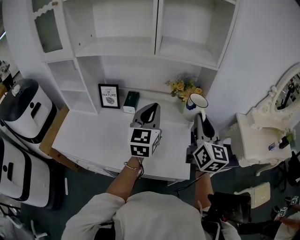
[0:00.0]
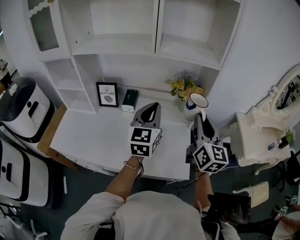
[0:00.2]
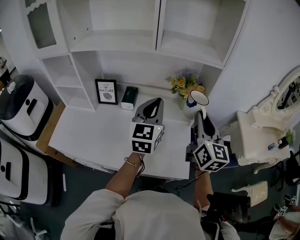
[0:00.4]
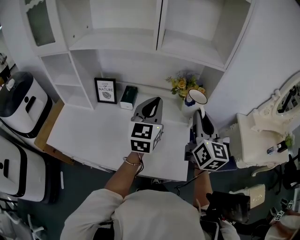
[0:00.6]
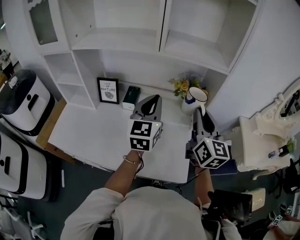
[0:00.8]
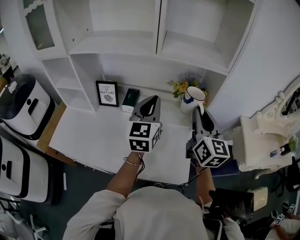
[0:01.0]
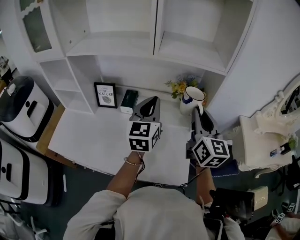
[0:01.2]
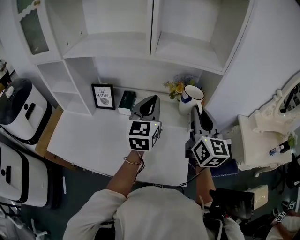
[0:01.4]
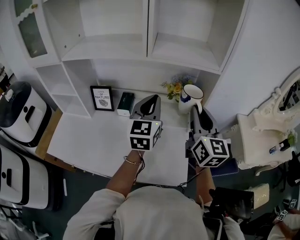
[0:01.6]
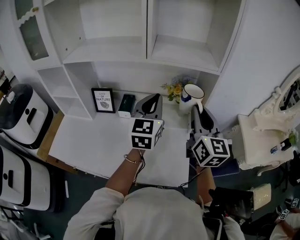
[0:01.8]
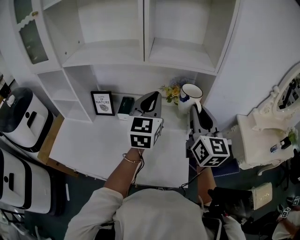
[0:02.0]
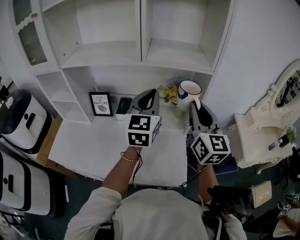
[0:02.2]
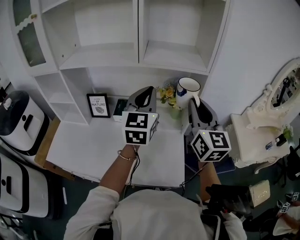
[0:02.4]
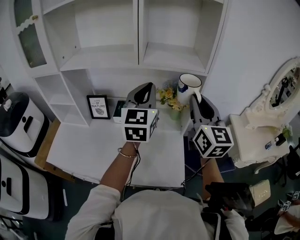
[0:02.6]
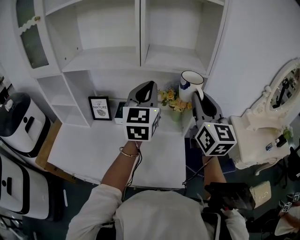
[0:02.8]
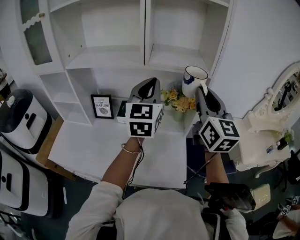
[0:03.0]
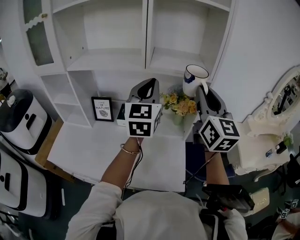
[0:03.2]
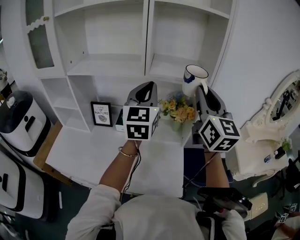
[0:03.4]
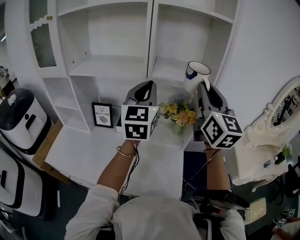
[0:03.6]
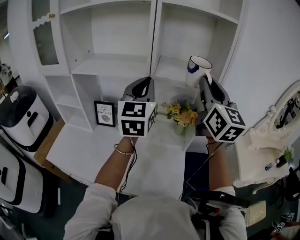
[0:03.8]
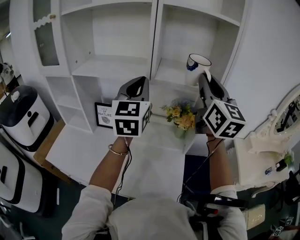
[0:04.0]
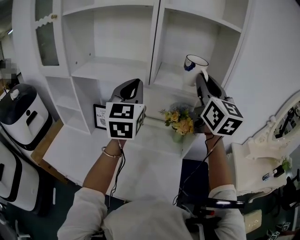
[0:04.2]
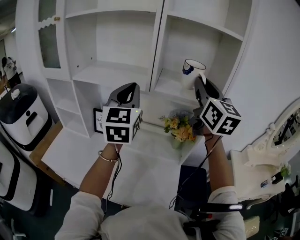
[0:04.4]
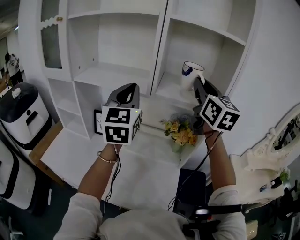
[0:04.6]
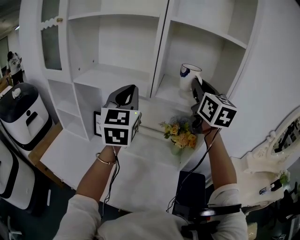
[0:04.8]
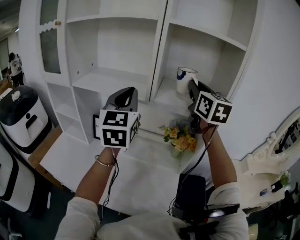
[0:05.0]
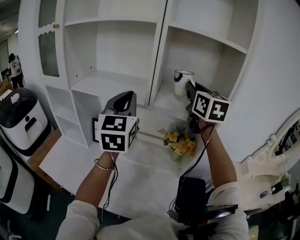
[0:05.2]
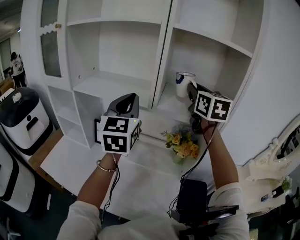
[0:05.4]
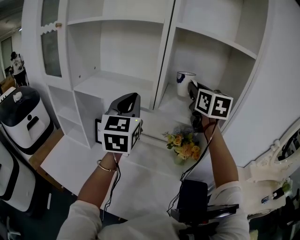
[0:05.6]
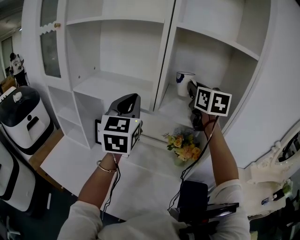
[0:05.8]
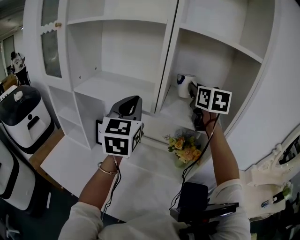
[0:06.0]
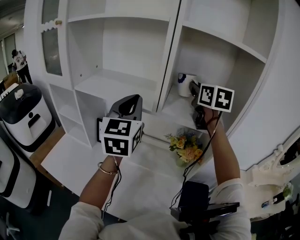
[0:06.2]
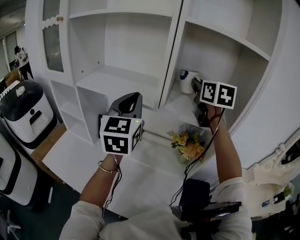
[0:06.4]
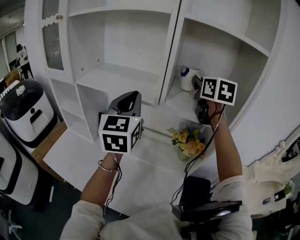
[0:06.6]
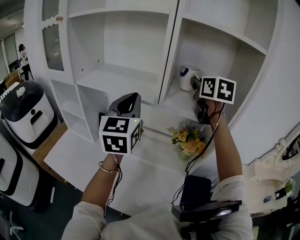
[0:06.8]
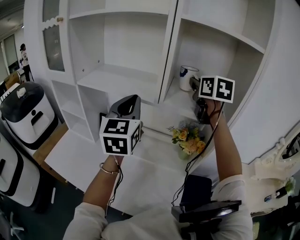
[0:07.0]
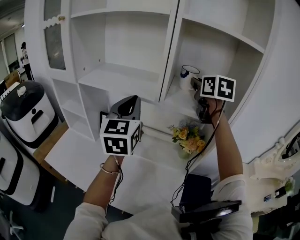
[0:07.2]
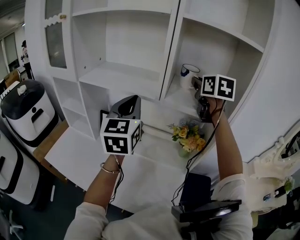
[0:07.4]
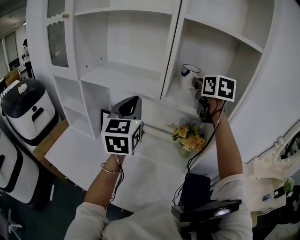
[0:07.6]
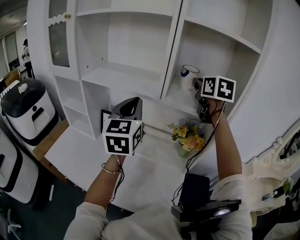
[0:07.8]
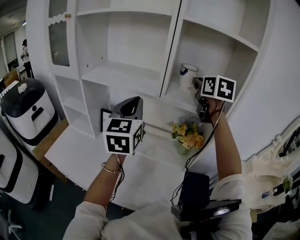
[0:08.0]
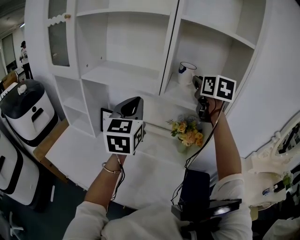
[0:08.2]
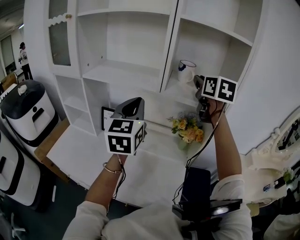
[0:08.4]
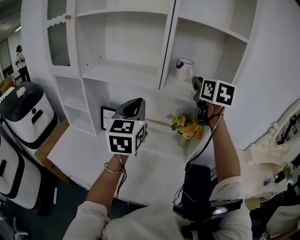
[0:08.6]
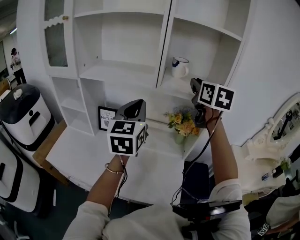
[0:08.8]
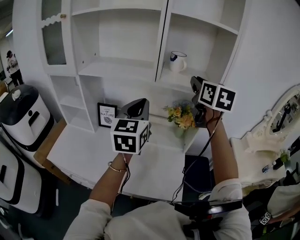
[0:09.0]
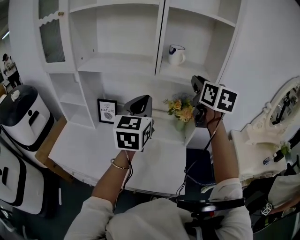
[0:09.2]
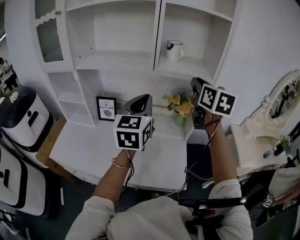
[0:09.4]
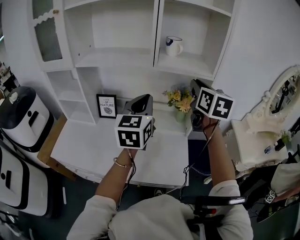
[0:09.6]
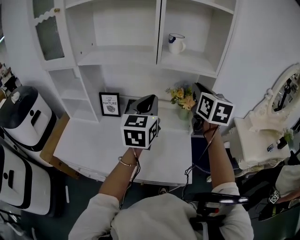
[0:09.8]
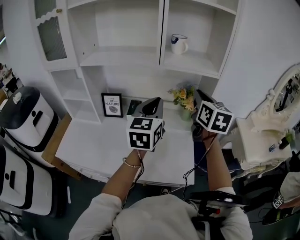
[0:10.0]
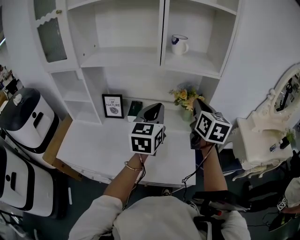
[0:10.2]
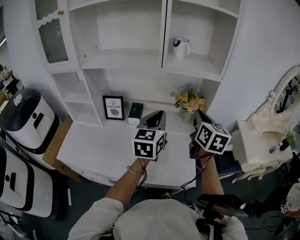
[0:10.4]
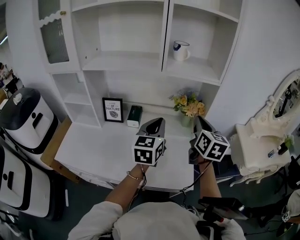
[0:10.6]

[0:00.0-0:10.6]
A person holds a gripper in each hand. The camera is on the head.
0:00.0 to 0:01.6: The two grippers go roughly 10 cm forward.
0:01.6 to 0:03.0: The two grippers go some 10 cm upward.
0:03.0 to 0:04.6: The left gripper heads to the left and upward, covering some 10 cm; the right gripper moves forward and upward, some 15 cm.
0:04.6 to 0:06.0: The right gripper is displaced forward by some 15 cm.
0:06.0 to 0:07.6: The left gripper ends up approximately 5 cm from where it was.
0:07.6 to 0:09.0: The right gripper goes approximately 15 cm backward, while the left gripper travels backward by about 10 cm.
0:09.0 to 0:10.6: The right gripper shifts about 20 cm downward and backward. Meanwhile the left gripper goes some 10 cm downward.

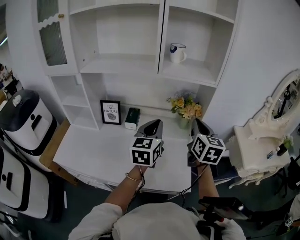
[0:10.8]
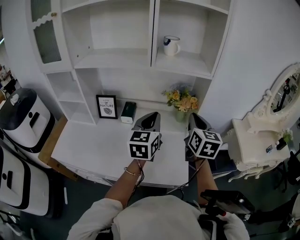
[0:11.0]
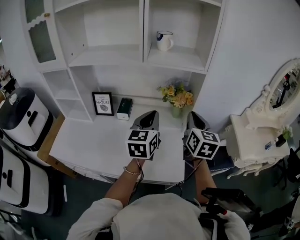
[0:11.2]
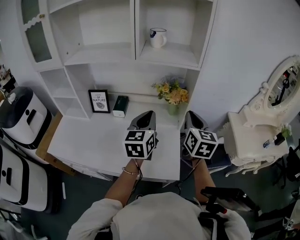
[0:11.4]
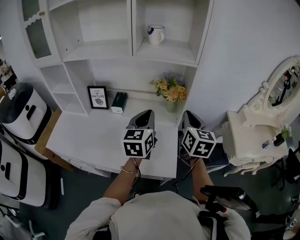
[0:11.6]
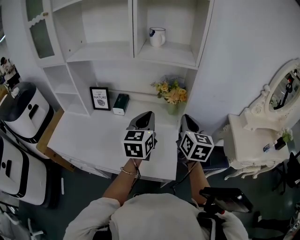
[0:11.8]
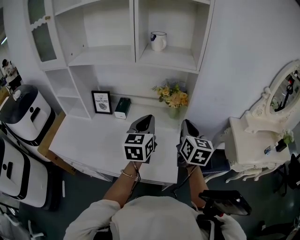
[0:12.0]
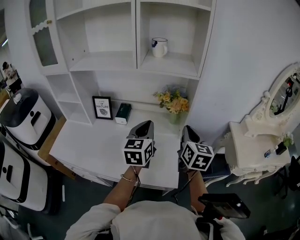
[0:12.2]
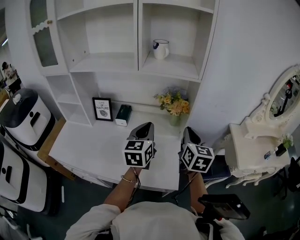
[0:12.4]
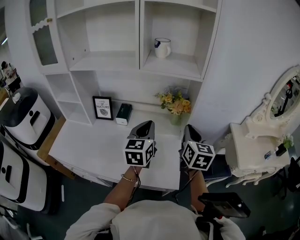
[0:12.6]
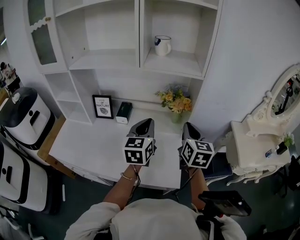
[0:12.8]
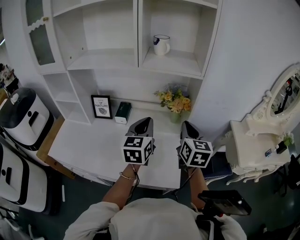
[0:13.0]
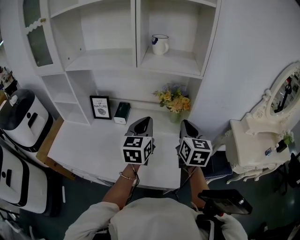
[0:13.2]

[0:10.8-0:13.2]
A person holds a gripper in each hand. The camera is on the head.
0:10.8 to 0:12.0: The two grippers go roughly 5 cm to the right.
0:12.0 to 0:13.2: The grippers move only a little.

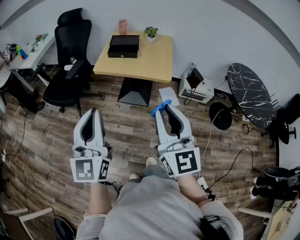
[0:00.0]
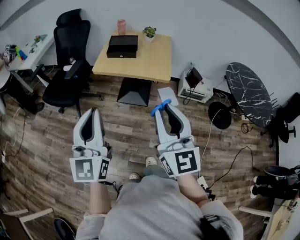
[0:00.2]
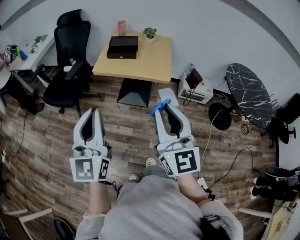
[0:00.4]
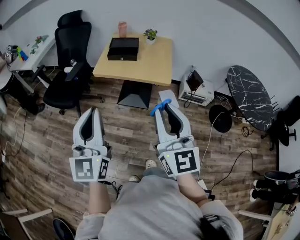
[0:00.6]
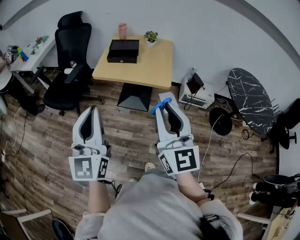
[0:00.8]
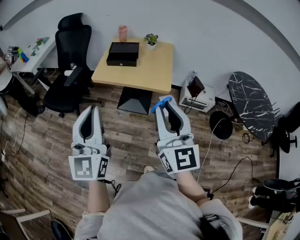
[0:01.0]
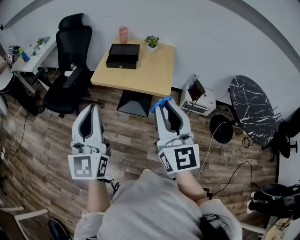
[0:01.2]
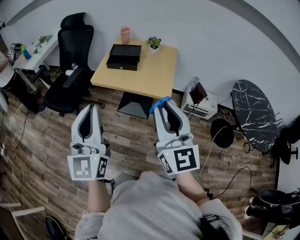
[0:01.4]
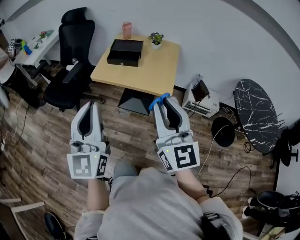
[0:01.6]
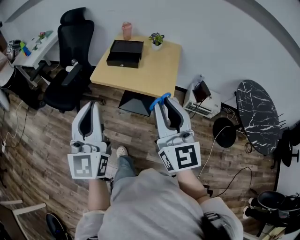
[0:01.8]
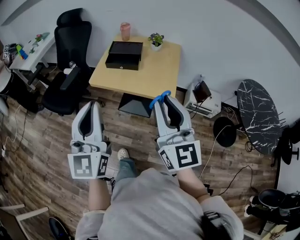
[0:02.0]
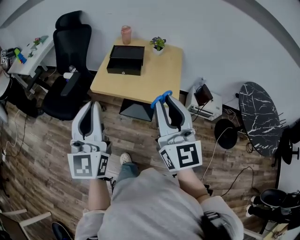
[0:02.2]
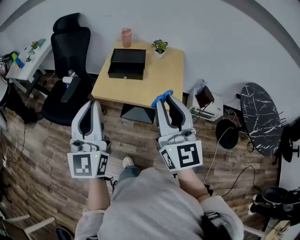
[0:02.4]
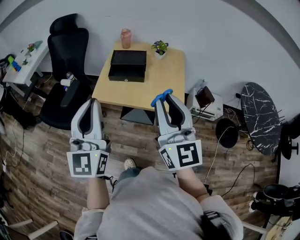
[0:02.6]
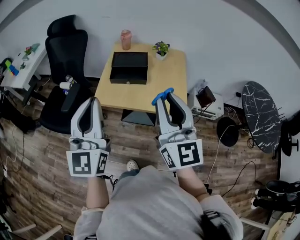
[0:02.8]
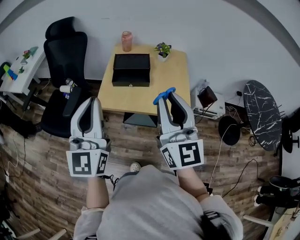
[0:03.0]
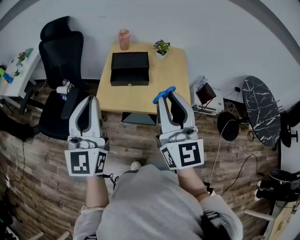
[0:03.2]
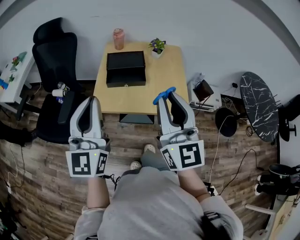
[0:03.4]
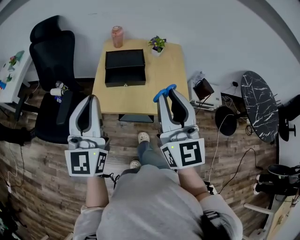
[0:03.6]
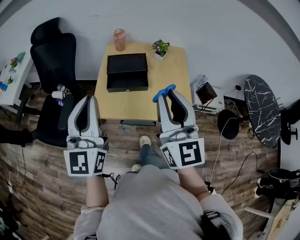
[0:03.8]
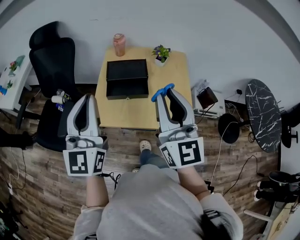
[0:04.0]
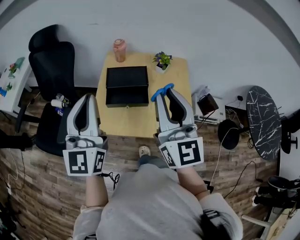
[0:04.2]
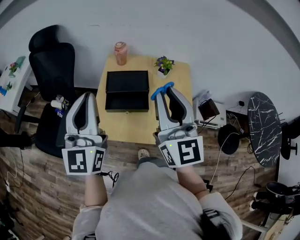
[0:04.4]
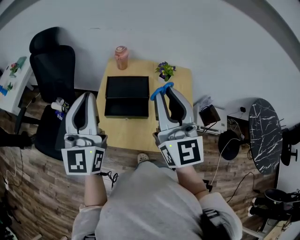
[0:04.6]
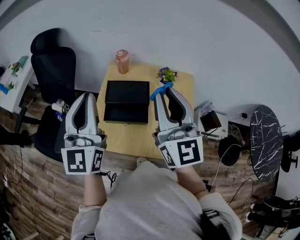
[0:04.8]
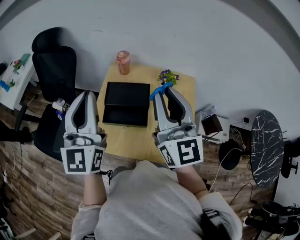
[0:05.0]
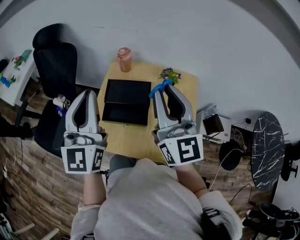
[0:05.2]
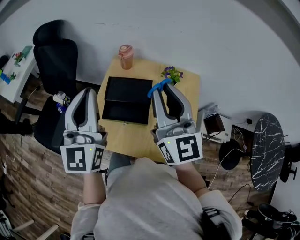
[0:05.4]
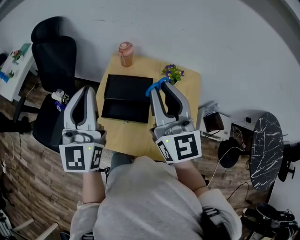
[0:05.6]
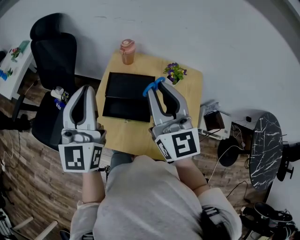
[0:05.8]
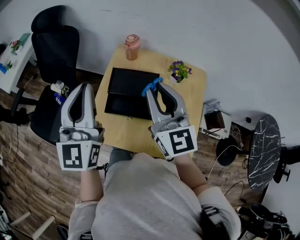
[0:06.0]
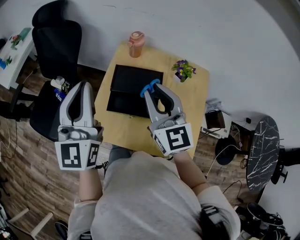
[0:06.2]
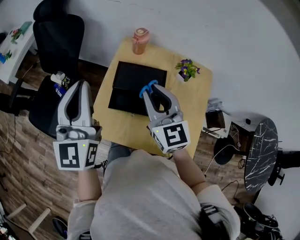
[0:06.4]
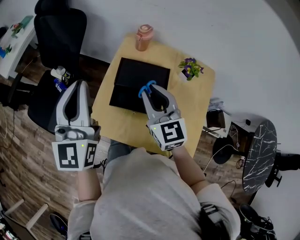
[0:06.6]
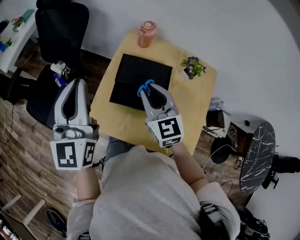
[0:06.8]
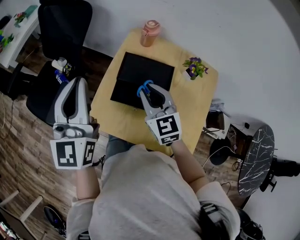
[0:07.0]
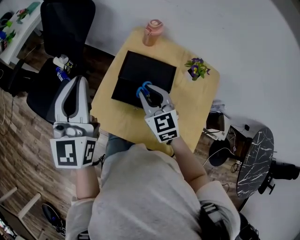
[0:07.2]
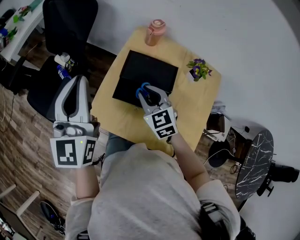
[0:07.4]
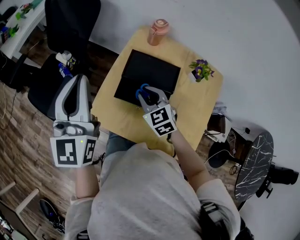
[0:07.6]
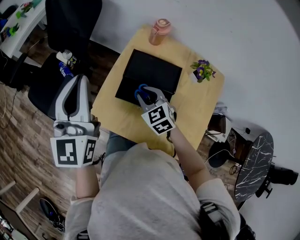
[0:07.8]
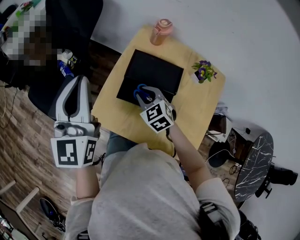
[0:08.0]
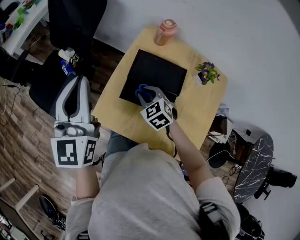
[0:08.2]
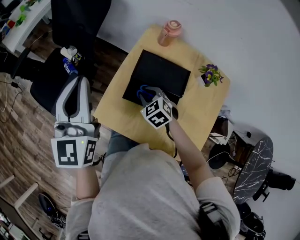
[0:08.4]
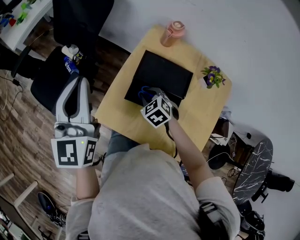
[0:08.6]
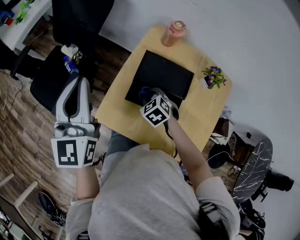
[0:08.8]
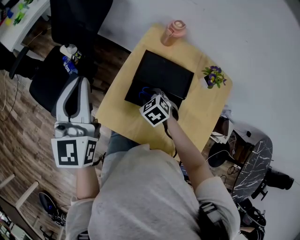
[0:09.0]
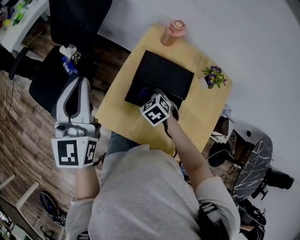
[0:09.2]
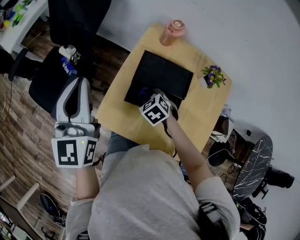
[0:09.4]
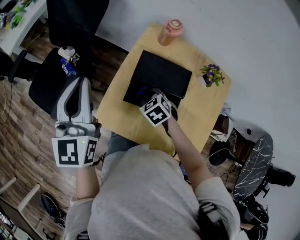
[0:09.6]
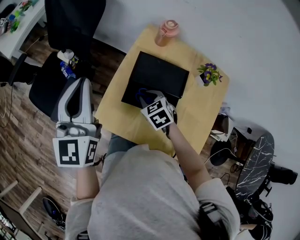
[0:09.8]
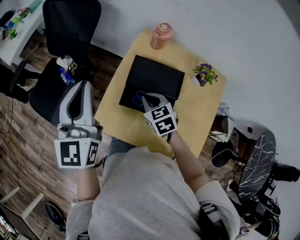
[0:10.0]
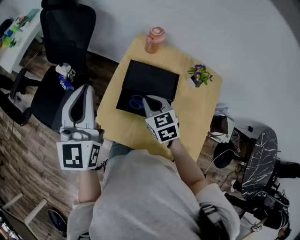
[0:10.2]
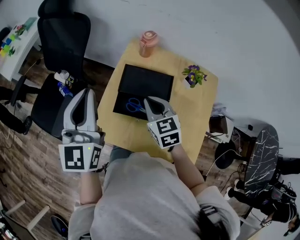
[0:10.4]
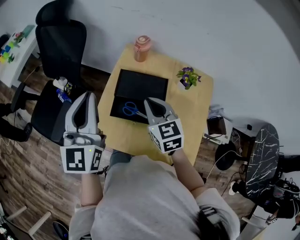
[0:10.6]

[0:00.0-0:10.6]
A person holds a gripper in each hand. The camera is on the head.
0:00.0 to 0:01.6: The two grippers go roughly 15 cm forward and to the right.
0:01.6 to 0:03.0: Both grippers move forward and to the left, some 25 cm.
0:03.0 to 0:04.6: The grippers both shift forward by roughly 25 cm.
0:04.6 to 0:06.0: The right gripper goes roughly 15 cm forward and downward. The left gripper goes roughly 5 cm forward.
0:06.0 to 0:07.6: The left gripper moves to the left, some 5 cm, while the right gripper moves downward, about 25 cm, and points its fingers about 40 degrees further downward.
0:07.6 to 0:09.0: The left gripper ends up roughly 5 cm from where it was; the right gripper shifts some 10 cm downward, and swivels some 30 degrees.
0:09.0 to 0:10.6: The left gripper goes approximately 10 cm to the right, while the right gripper moves upward, about 20 cm, and points its fingers some 40 degrees further upward.
